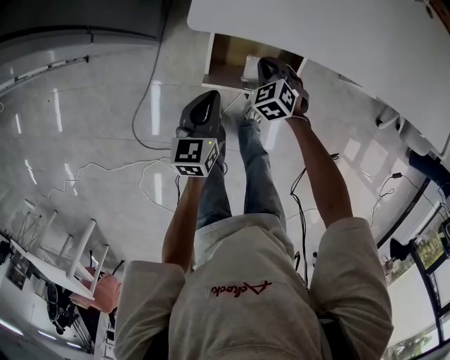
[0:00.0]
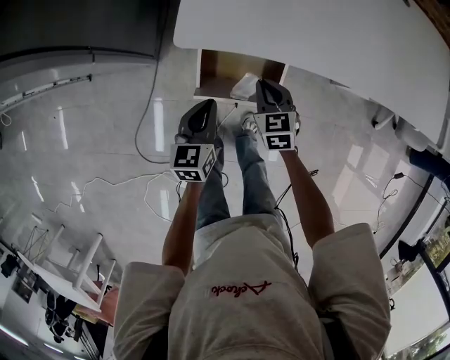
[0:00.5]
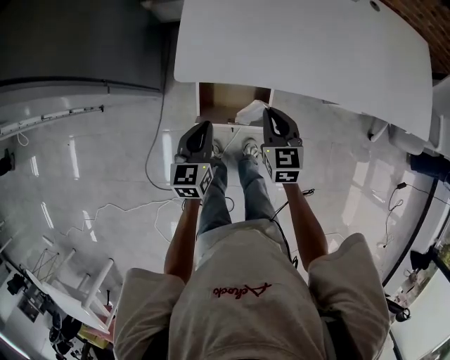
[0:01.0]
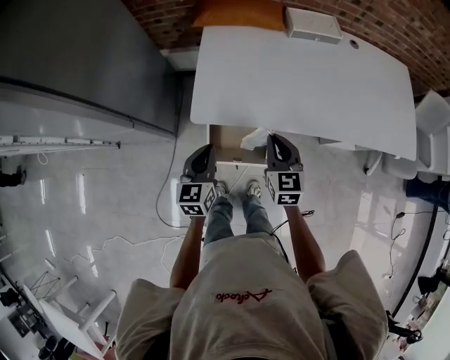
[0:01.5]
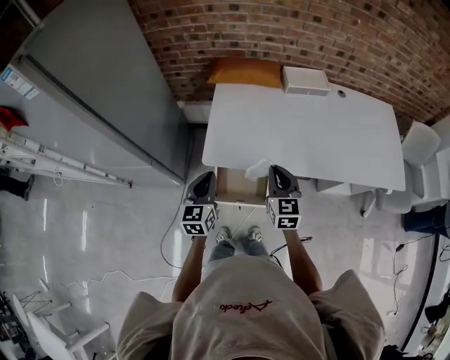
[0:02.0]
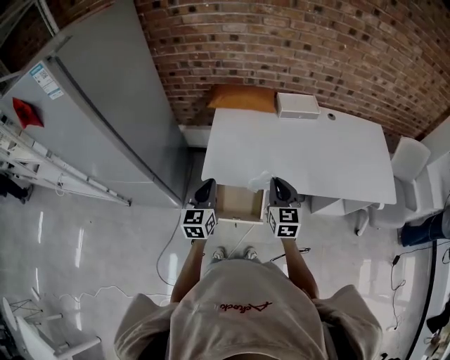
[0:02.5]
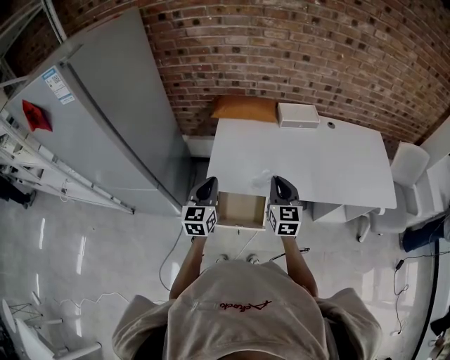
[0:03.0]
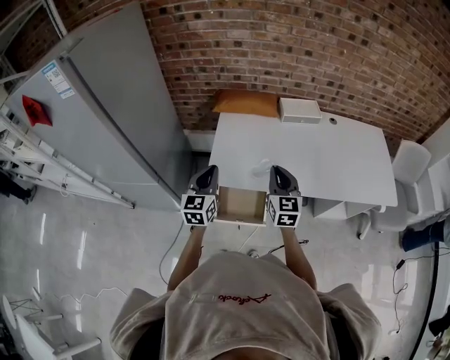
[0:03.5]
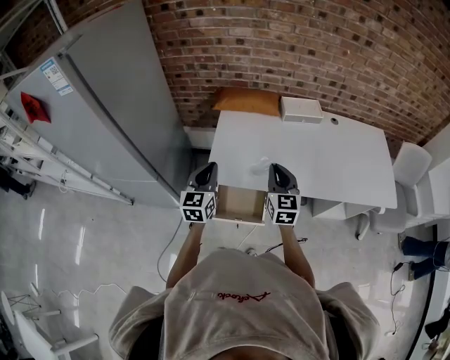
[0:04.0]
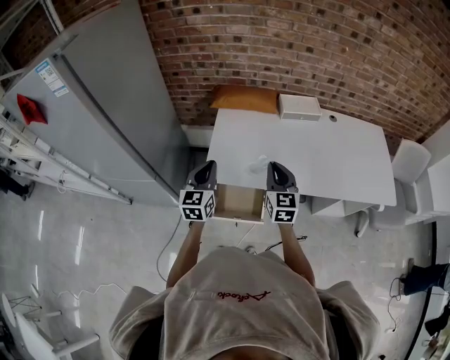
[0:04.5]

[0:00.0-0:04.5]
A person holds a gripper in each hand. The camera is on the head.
0.0 to 2.0 s: The two grippers go roughly 30 cm upward. The right gripper tips its fingers upward by approximately 40 degrees.
2.0 to 4.5 s: Both grippers travel together upward, approximately 10 cm.

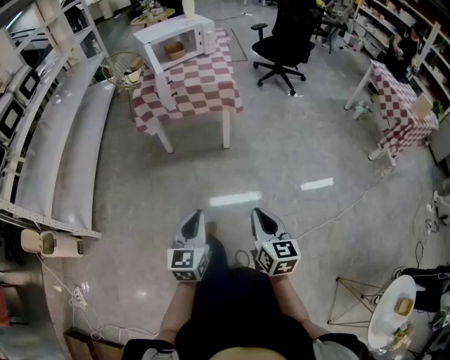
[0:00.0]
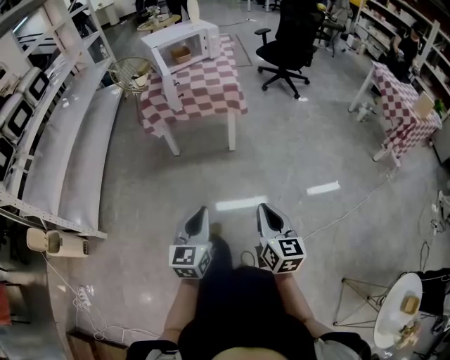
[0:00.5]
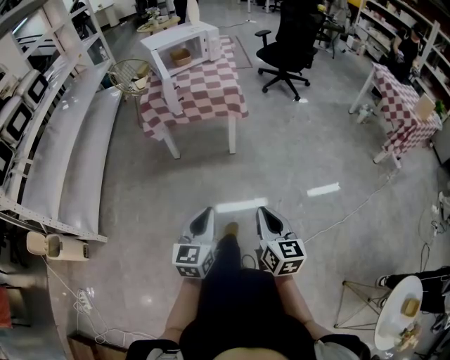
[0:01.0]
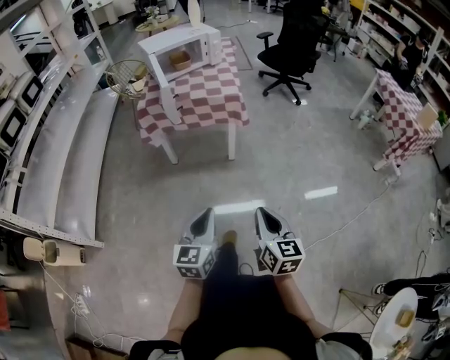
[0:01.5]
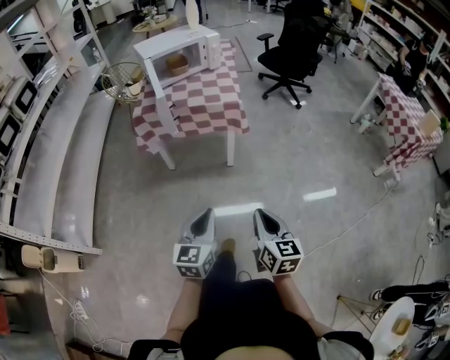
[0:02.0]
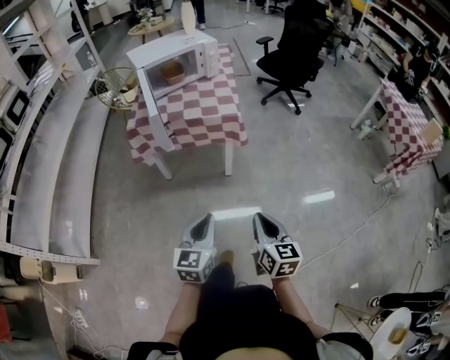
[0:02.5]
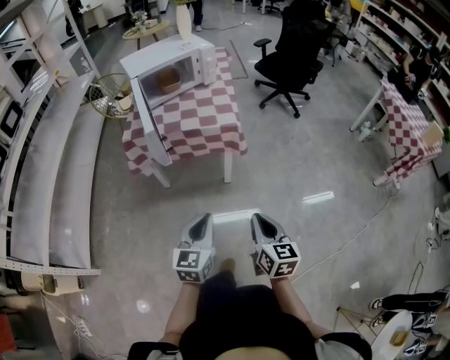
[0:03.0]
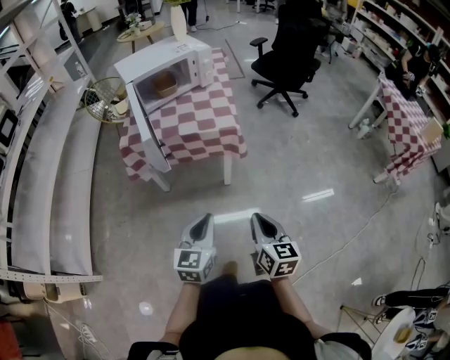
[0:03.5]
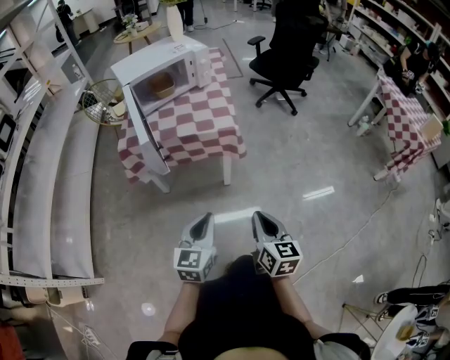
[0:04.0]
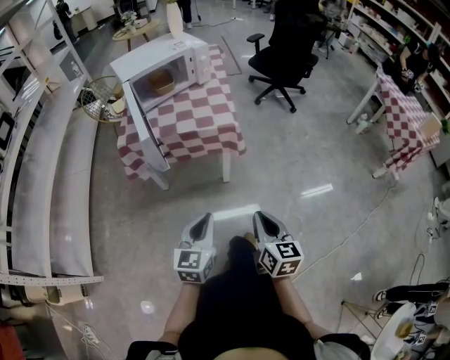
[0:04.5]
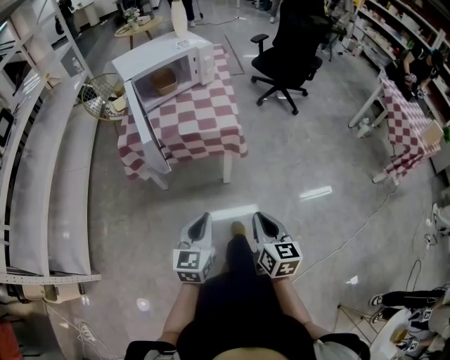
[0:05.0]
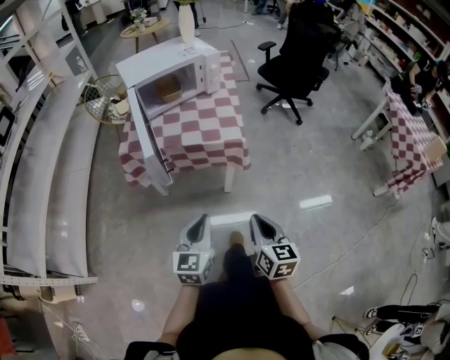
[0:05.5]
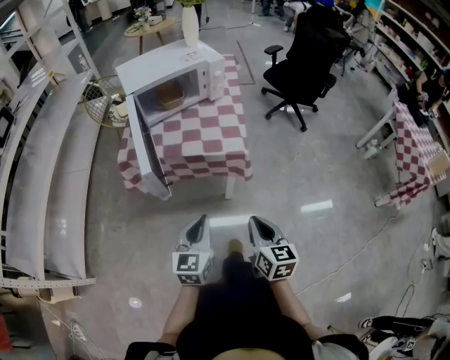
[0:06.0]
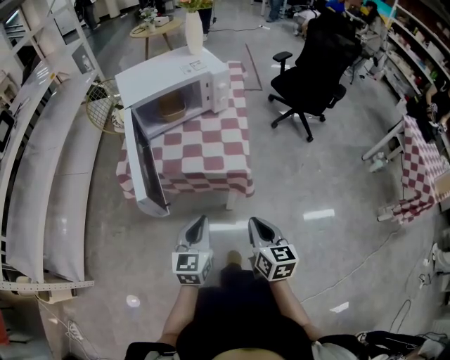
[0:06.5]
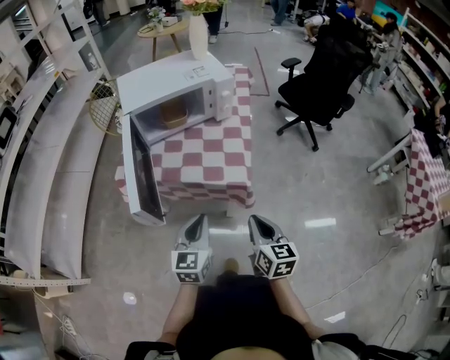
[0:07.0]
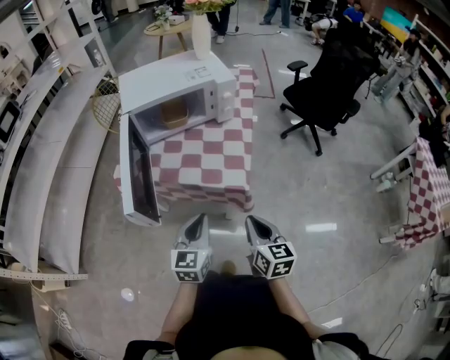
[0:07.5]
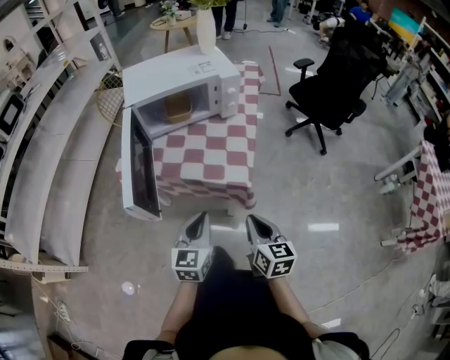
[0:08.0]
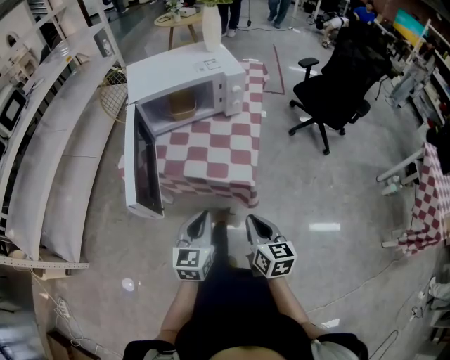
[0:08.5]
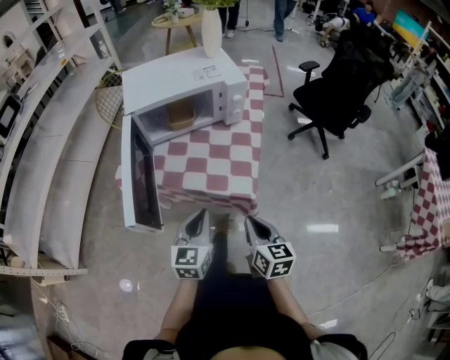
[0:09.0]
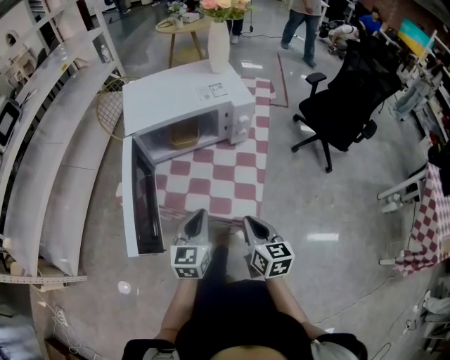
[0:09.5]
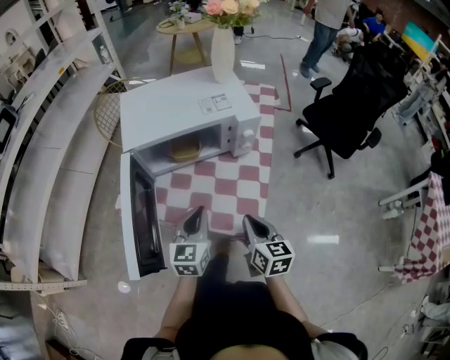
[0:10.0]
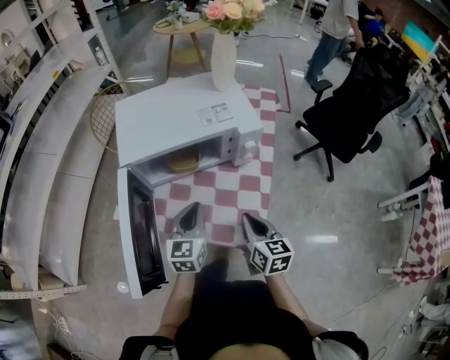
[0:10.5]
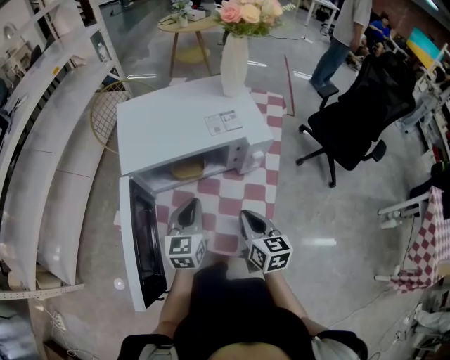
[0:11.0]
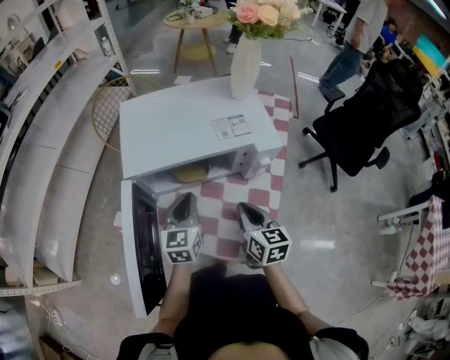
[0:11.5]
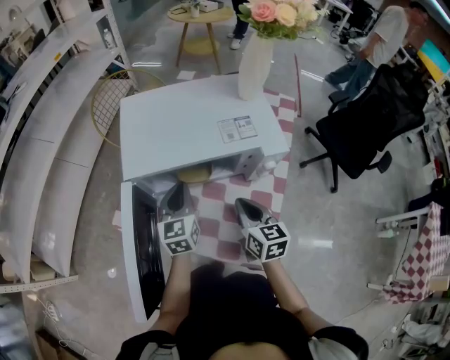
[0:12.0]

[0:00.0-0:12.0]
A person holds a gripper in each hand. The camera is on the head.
0.0 to 2.0 s: The grippers both shift forward by some 10 cm.
2.0 to 4.0 s: The two grippers go some 20 cm forward.
4.0 to 6.0 s: The grippers both shift forward by some 10 cm.
6.0 to 8.0 s: The left gripper is displaced forward and to the right by roughly 15 cm. Meanwhile the right gripper shifts approximately 15 cm forward.
8.0 to 10.0 s: The grippers both shift forward by about 20 cm.
10.0 to 12.0 s: The two grippers go approximately 20 cm forward.

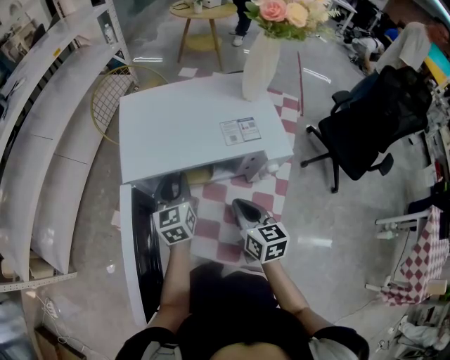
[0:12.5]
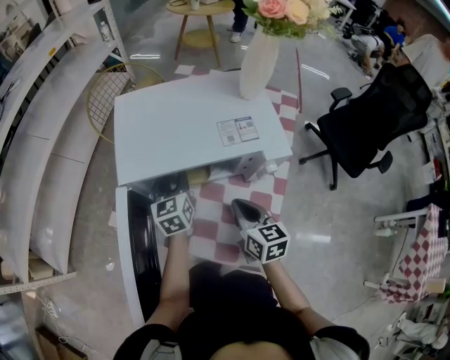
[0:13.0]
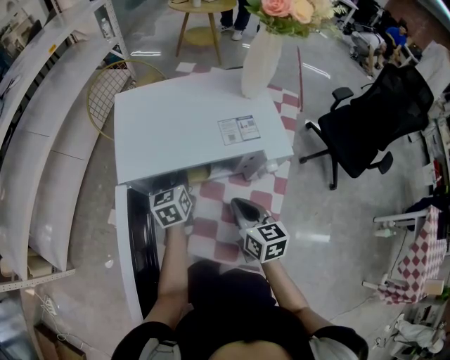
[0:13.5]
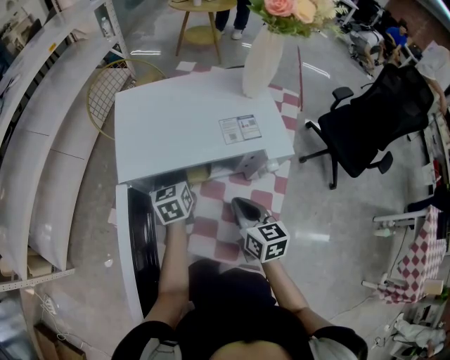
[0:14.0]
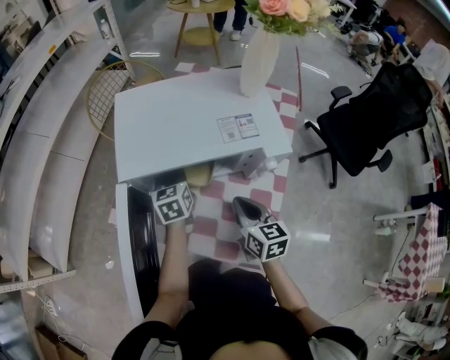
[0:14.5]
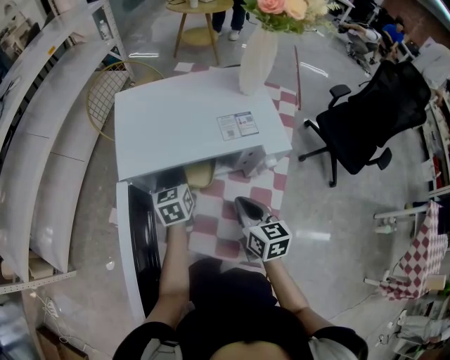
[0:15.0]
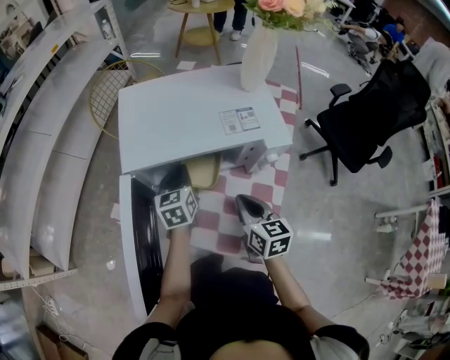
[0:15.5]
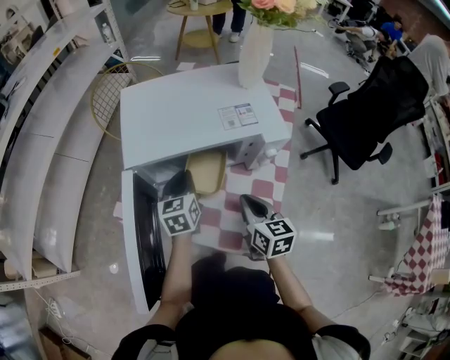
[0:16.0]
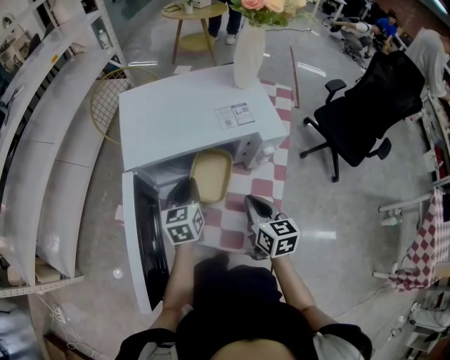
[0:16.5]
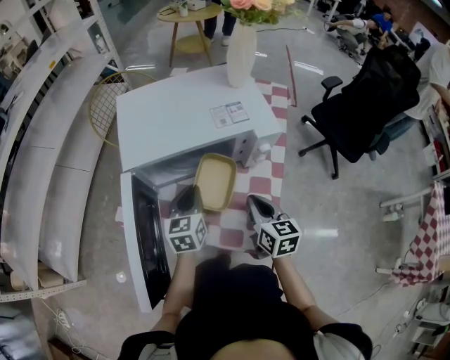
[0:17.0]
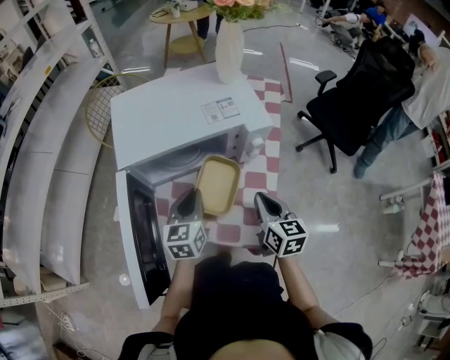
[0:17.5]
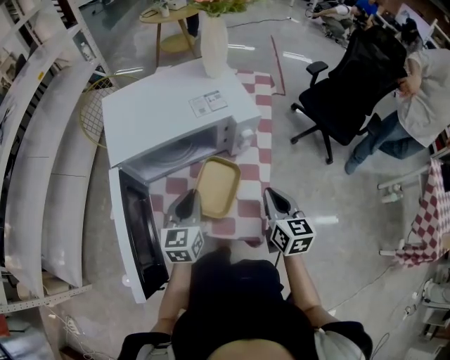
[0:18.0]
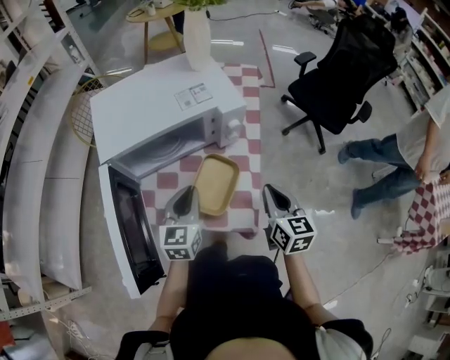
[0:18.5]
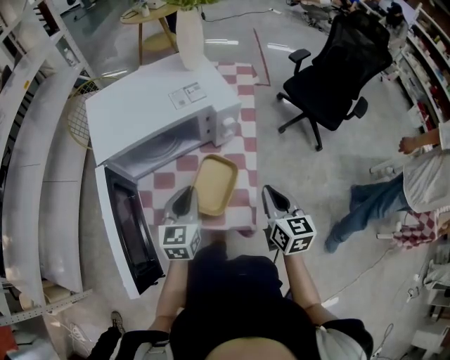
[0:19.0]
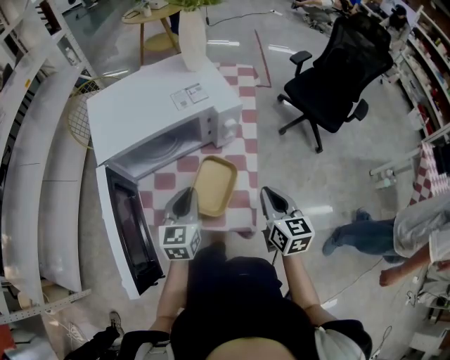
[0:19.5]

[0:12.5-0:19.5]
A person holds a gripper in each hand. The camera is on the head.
12.5 to 14.5 s: The left gripper shifts by approximately 5 cm, and closes up.
14.5 to 16.0 s: The left gripper is displaced backward by roughly 5 cm.
16.0 to 17.5 s: The left gripper moves backward, about 10 cm. Meanwhile the right gripper heads to the right, covering roughly 5 cm.
17.5 to 19.5 s: The right gripper shifts approximately 10 cm to the right and backward, while the left gripper moves roughly 5 cm.

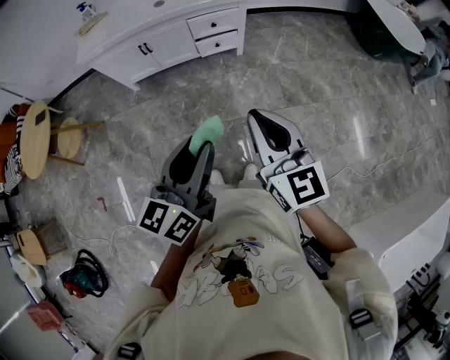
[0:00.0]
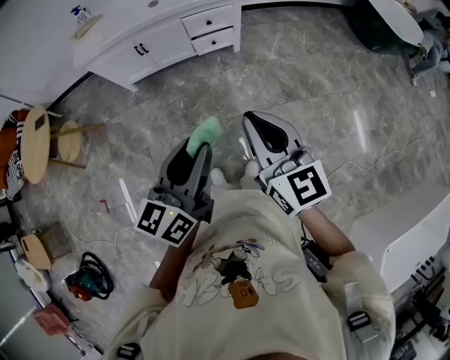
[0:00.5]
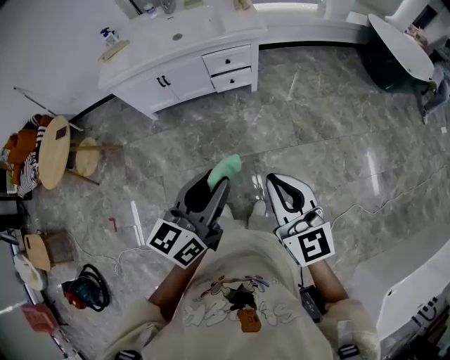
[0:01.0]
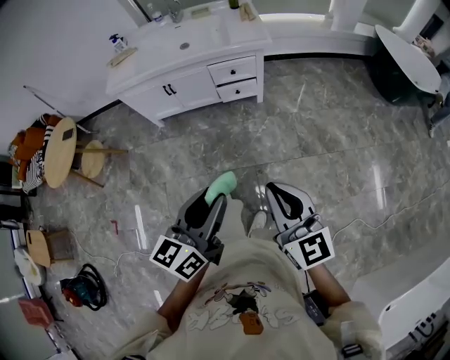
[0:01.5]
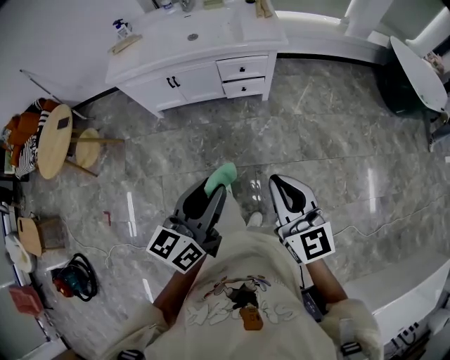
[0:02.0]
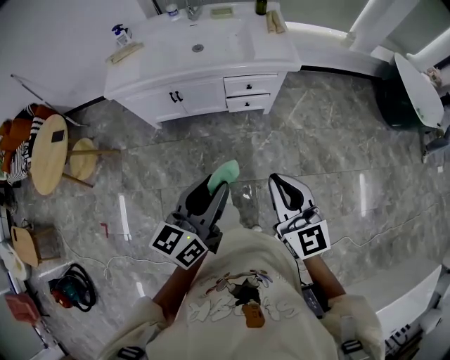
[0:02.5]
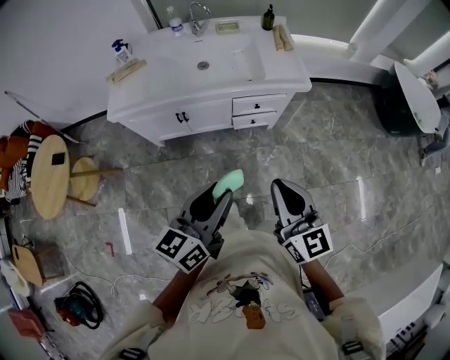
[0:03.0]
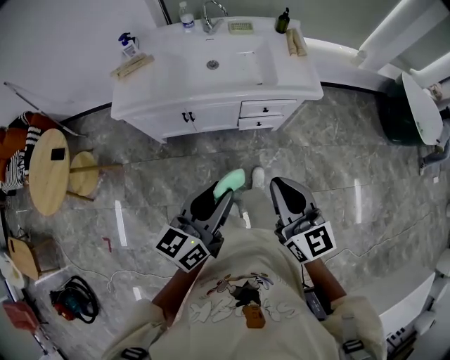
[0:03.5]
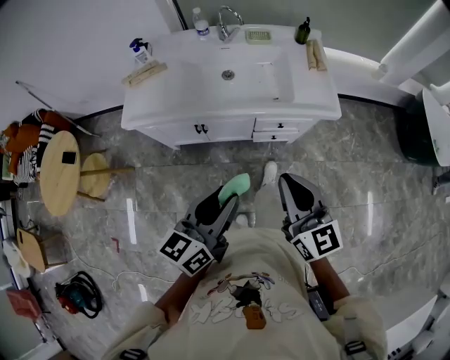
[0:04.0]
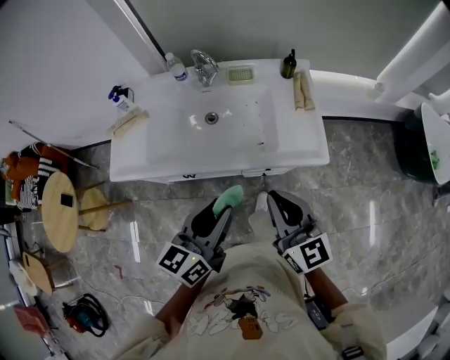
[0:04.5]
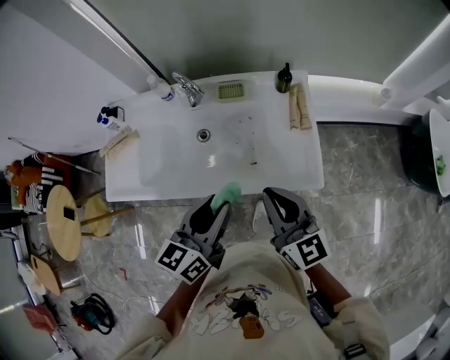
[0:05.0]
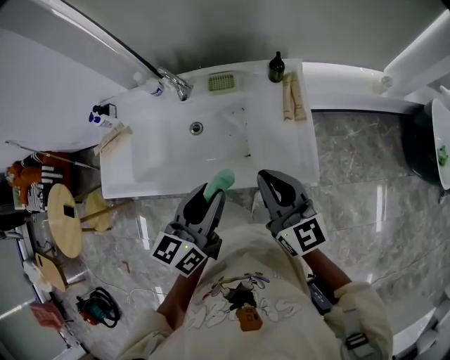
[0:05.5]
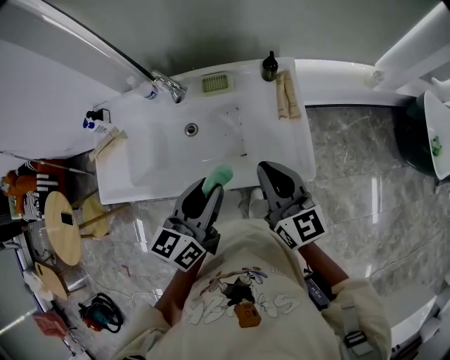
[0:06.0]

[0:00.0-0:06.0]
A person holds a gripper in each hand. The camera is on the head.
0.0 to 2.0 s: The left gripper goes some 5 cm forward; the right gripper changes place by about 5 cm.
2.0 to 4.0 s: The two grippers go roughly 35 cm forward and to the left.
4.0 to 6.0 s: Both grippers move forward, about 35 cm.
